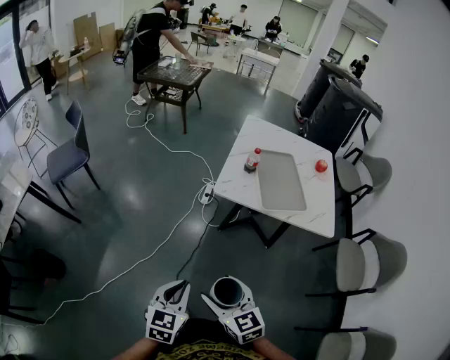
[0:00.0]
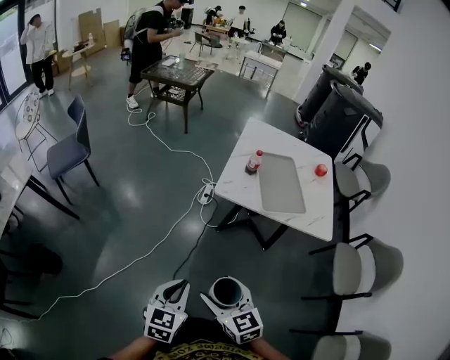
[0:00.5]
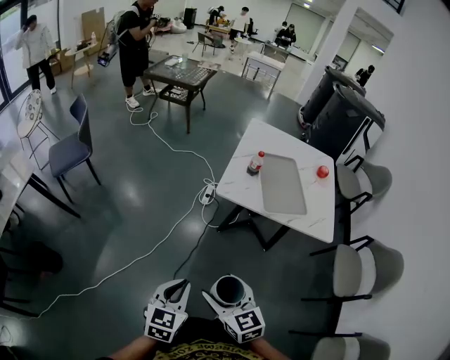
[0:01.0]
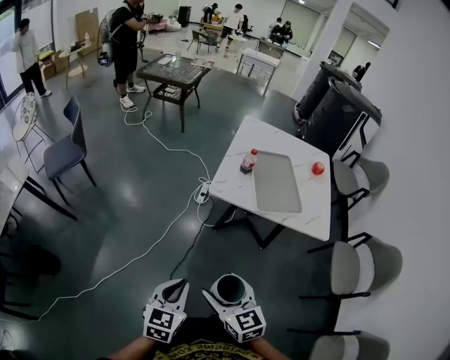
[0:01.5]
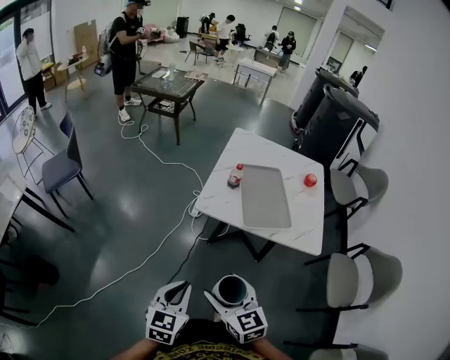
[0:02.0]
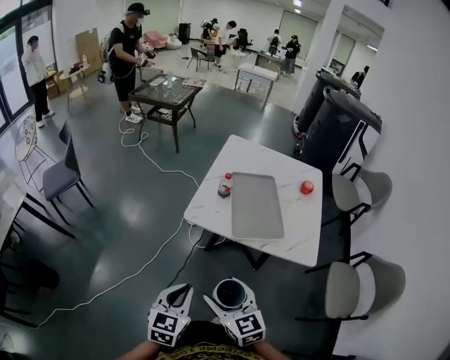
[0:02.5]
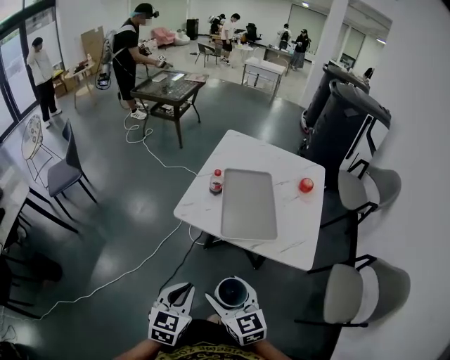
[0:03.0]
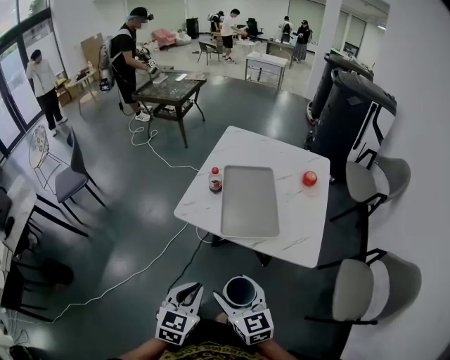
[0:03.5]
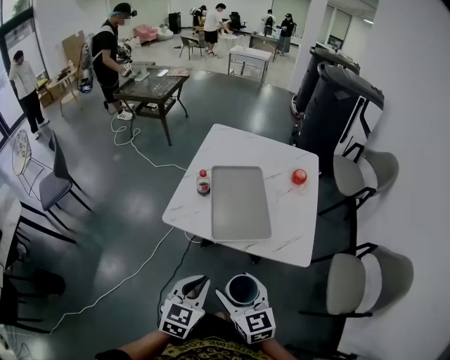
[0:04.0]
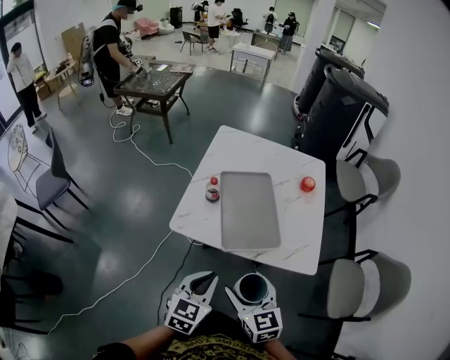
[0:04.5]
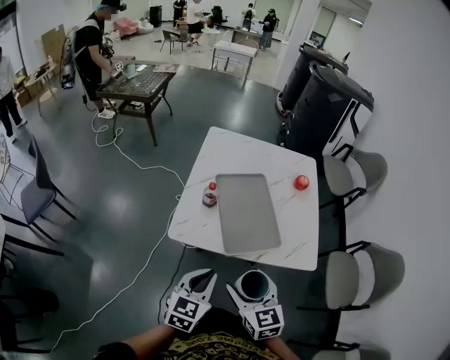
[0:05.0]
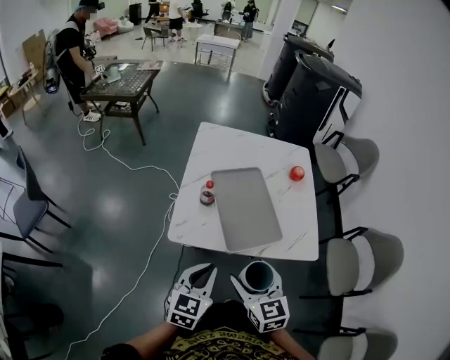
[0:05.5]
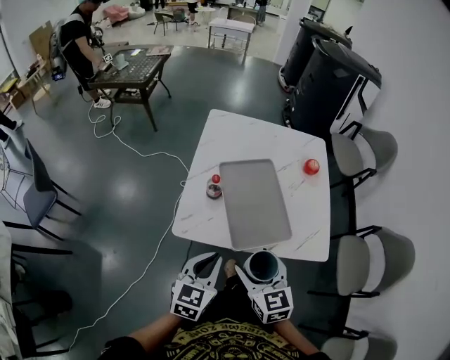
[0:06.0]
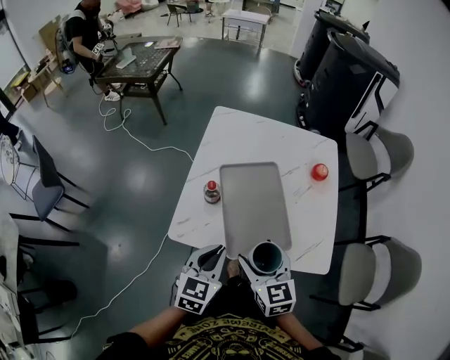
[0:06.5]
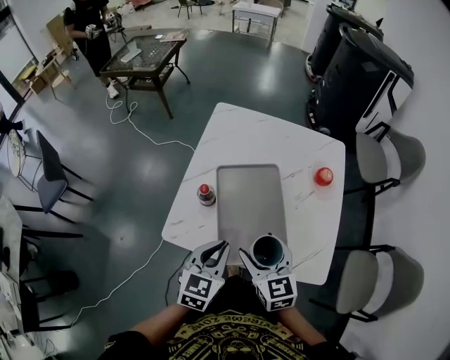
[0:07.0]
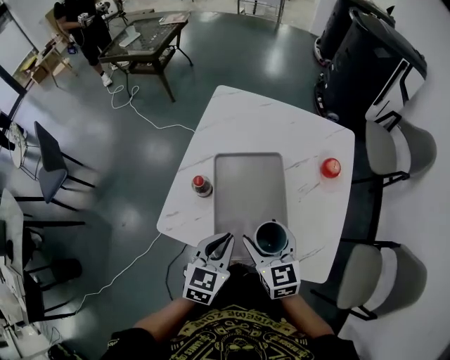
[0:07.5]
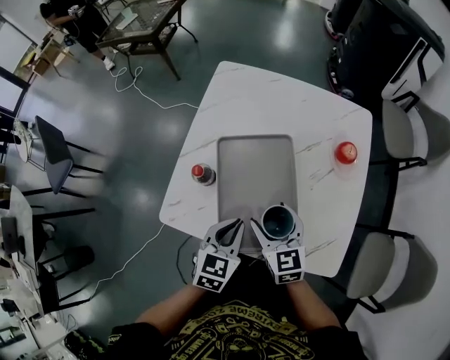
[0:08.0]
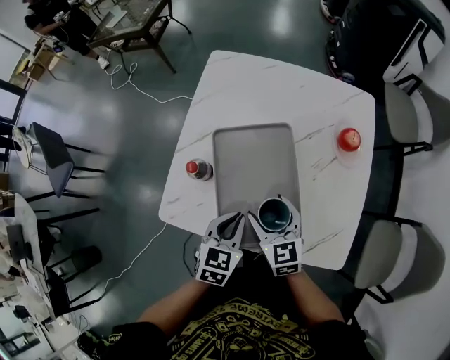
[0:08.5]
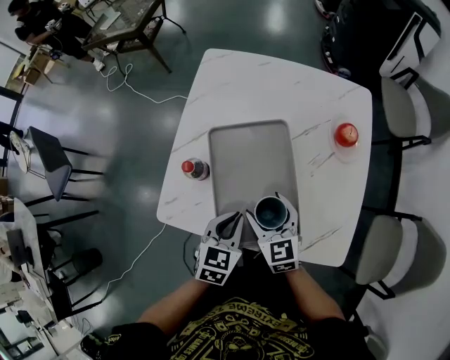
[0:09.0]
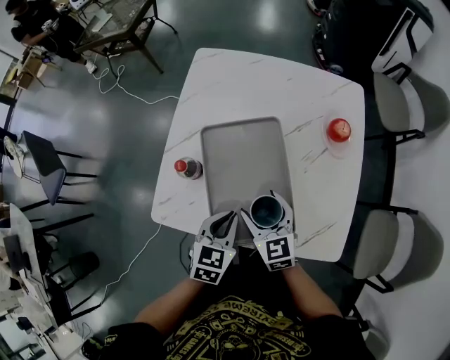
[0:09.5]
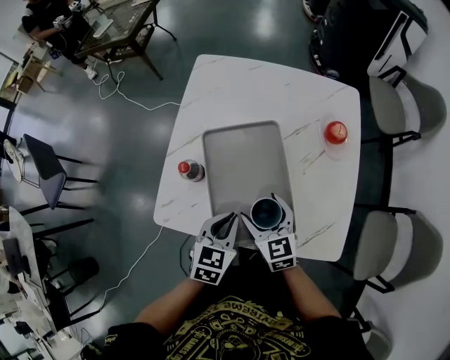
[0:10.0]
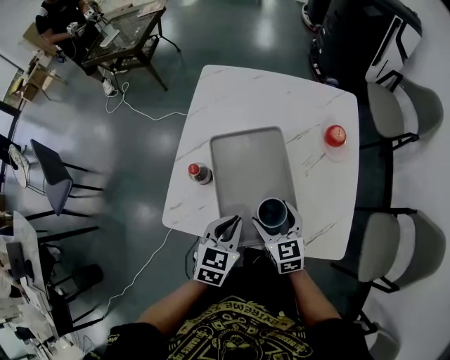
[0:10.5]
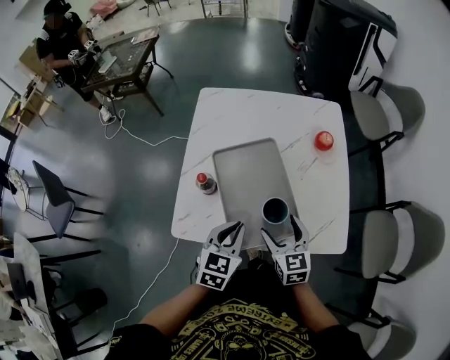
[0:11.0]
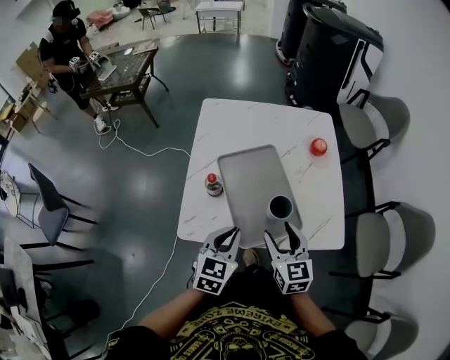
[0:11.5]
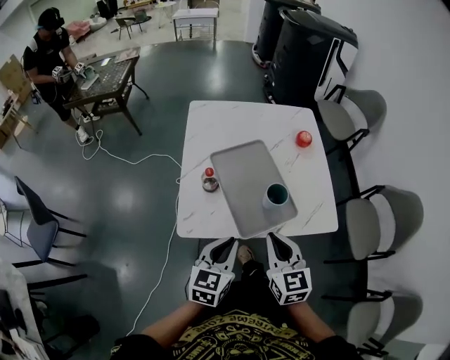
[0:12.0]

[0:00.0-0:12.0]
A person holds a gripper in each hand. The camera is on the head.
0:00.0 to 0:02.0: Both grippers travel together to the right and forward, about 10 cm.
0:02.0 to 0:04.0: Both grippers travel together to the right and forward, about 25 cm.
0:04.0 to 0:06.0: The grippers both shift forward and to the left by some 15 cm.
0:06.0 to 0:08.0: The right gripper is displaced forward, downward and to the right by about 25 cm. Meanwhile the left gripper moves forward, to the right and downward, roughly 20 cm.
0:08.0 to 0:10.0: The grippers stay close to where they were, moving slightly.
0:10.0 to 0:12.0: The left gripper travels backward, upward and to the left by roughly 20 cm, while the right gripper travels backward and upward by about 20 cm, changes its angle by some 30 degrees, and closes.

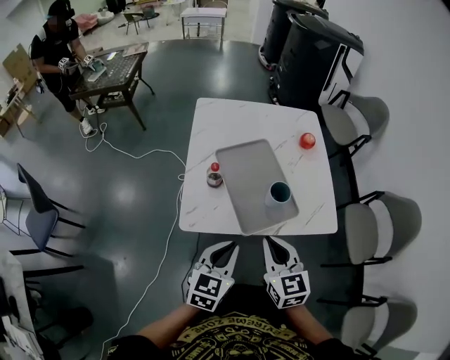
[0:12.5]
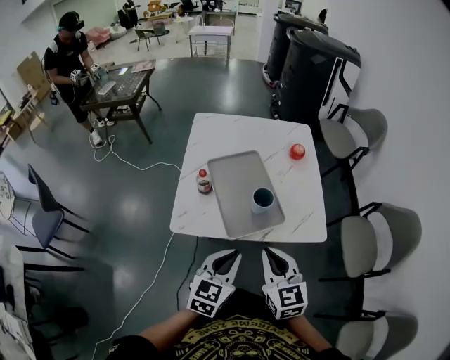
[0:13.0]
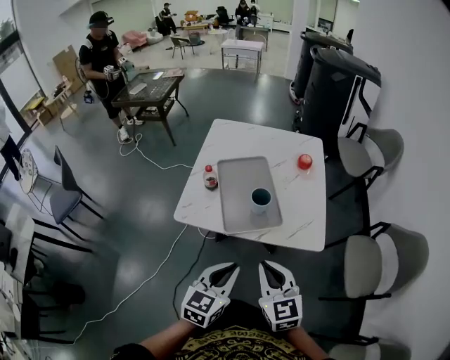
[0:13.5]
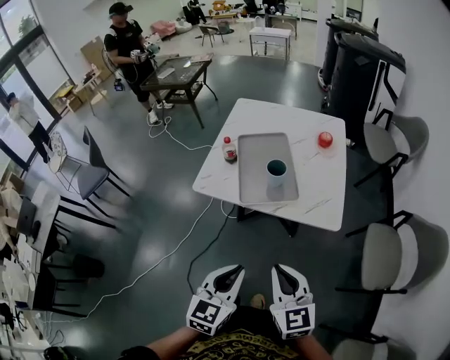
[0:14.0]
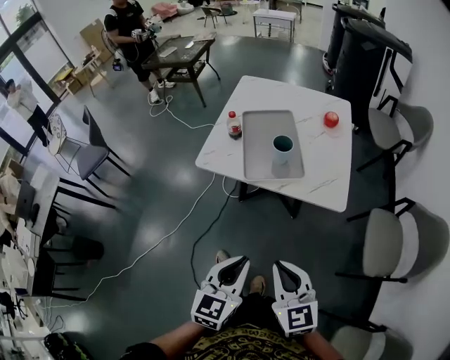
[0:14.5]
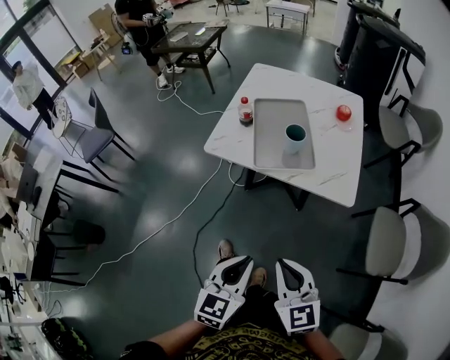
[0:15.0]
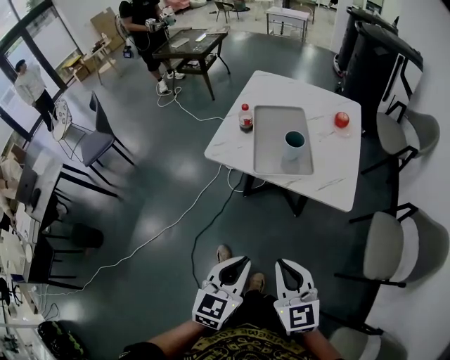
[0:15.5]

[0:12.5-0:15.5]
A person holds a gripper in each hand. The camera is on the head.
0:12.5 to 0:14.0: The grippers both shift backward and to the right by some 25 cm. The right gripper rotates about 20 degrees.
0:14.0 to 0:15.5: Both grippers travel together backward, roughly 5 cm.

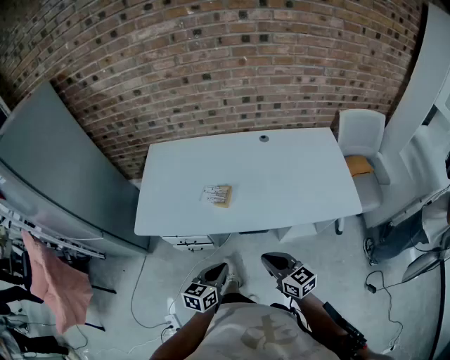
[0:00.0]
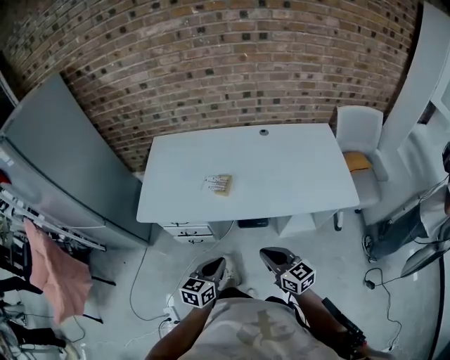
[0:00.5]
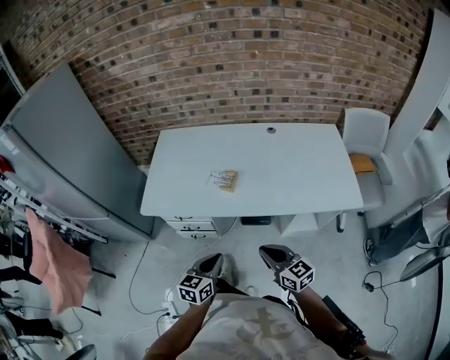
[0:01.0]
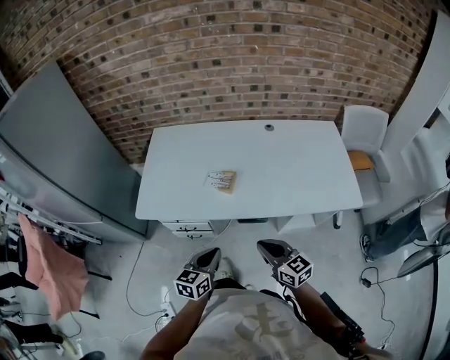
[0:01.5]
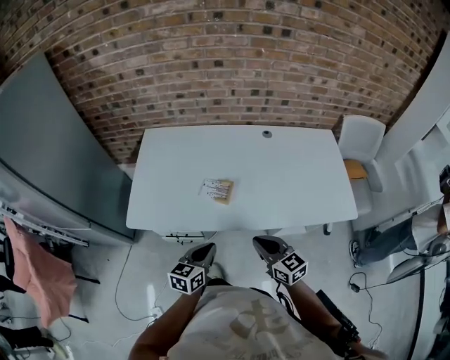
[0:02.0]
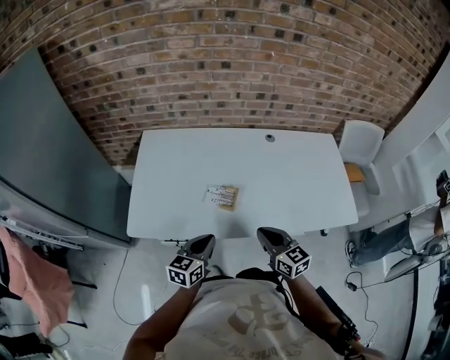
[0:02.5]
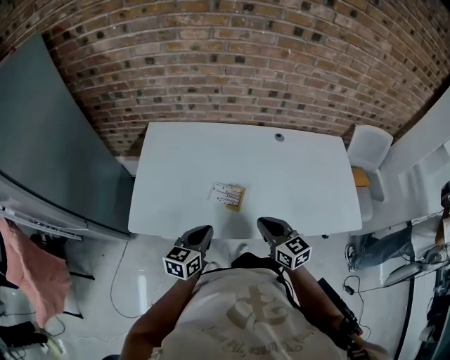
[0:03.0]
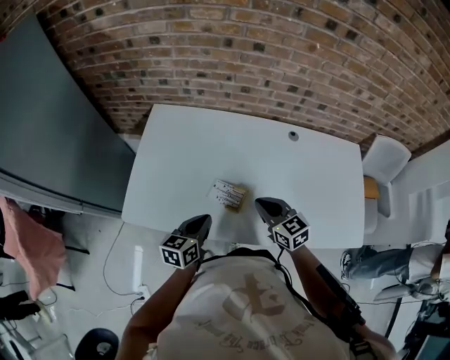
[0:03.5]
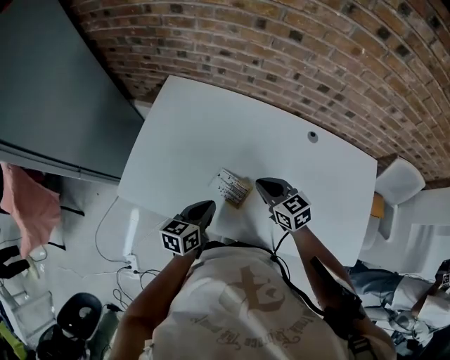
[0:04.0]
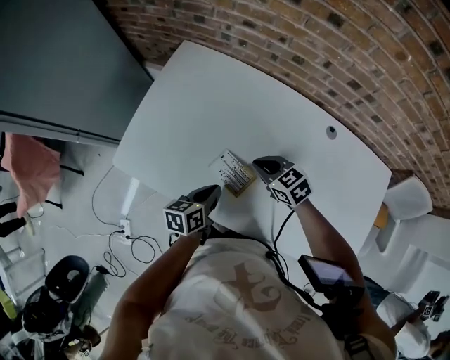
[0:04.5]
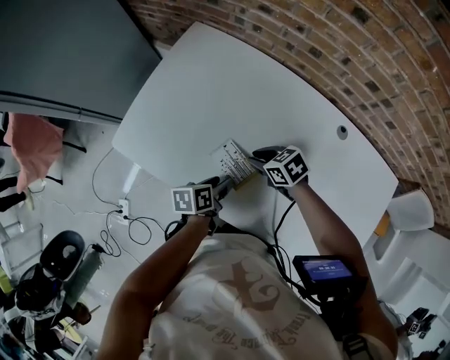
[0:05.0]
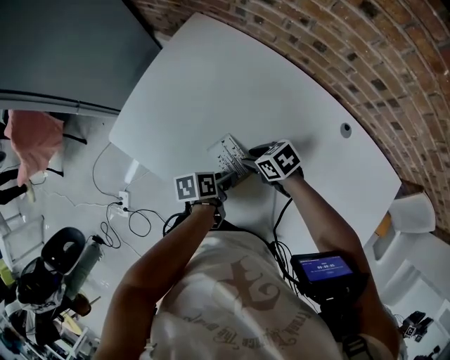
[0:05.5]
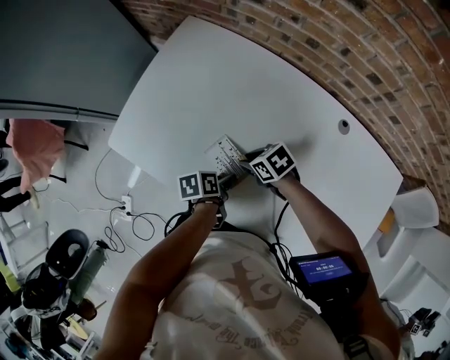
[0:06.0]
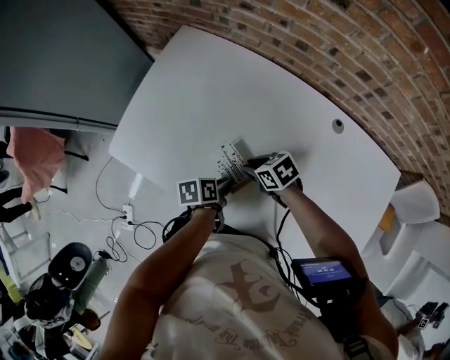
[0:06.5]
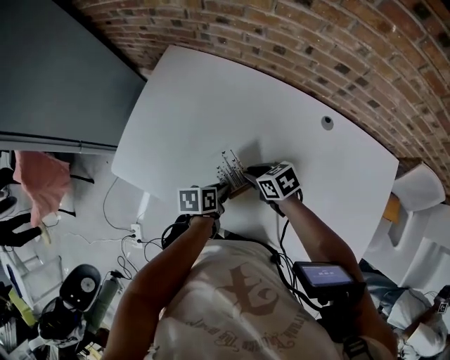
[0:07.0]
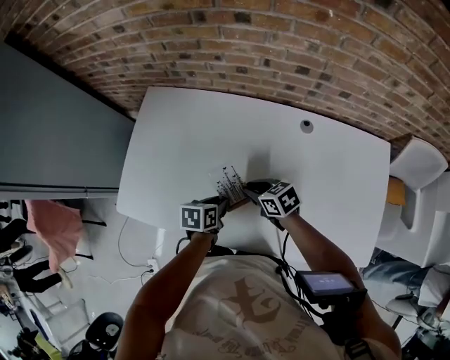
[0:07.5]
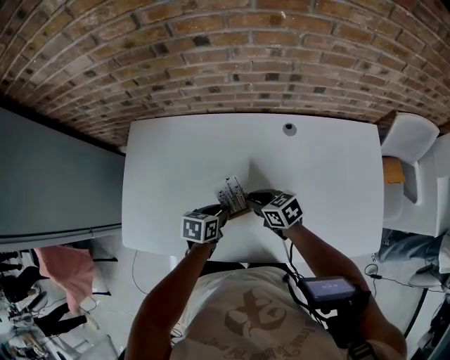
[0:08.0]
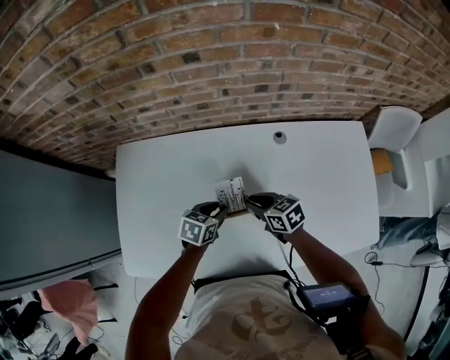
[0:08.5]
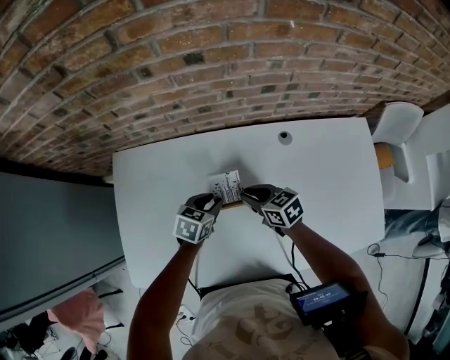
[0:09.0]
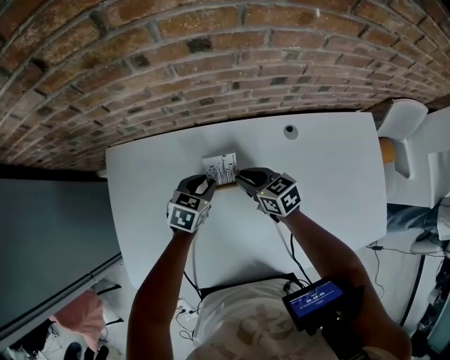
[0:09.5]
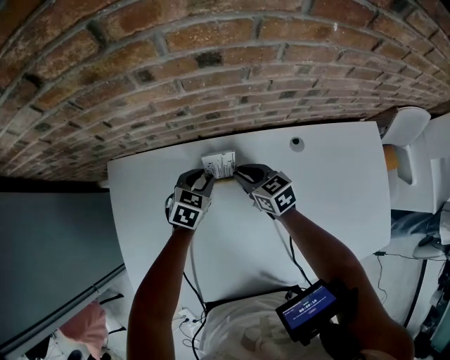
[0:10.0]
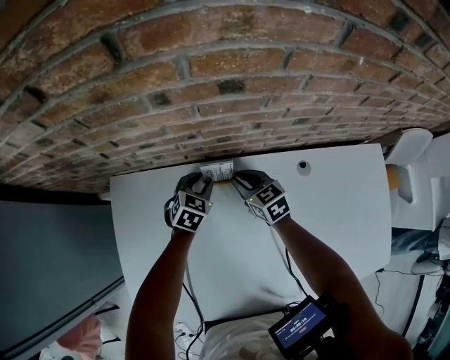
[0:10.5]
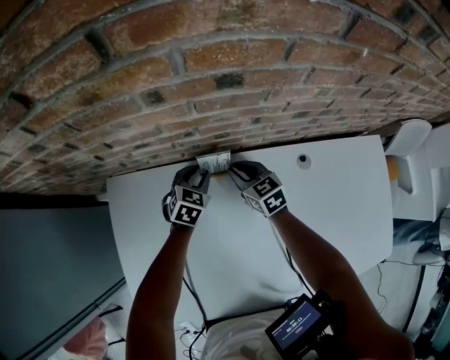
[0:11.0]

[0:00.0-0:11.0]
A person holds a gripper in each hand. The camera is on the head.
0:00.0 to 0:02.0: The right gripper heads forward, covering roughly 10 cm. Meanwhile the left gripper shifts approximately 10 cm forward and to the left.
0:02.0 to 0:03.5: The two grippers go some 20 cm forward.
0:03.5 to 0:05.5: Both grippers travel together downward, about 15 cm. The right gripper rotates roughly 60 degrees, and opens up, while the left gripper rotates around the line of its fingers by roughly 50 degrees, counterclockwise from behind, and opens its fingers.
0:05.5 to 0:07.5: The left gripper changes place by some 5 cm, swivels roughly 40 degrees, and closes. The right gripper moves about 10 cm, and rotates roughly 30 degrees.
0:07.5 to 0:09.0: Both grippers travel together forward, some 15 cm. The left gripper changes its angle by about 40 degrees. Meanwhile the right gripper turns by about 20 degrees.
0:09.0 to 0:11.0: The grippers both shift forward by roughly 20 cm. The left gripper rotates roughly 20 degrees.
